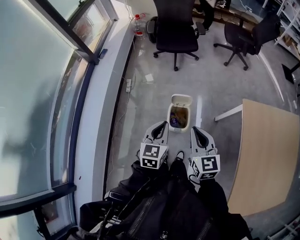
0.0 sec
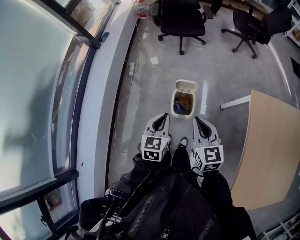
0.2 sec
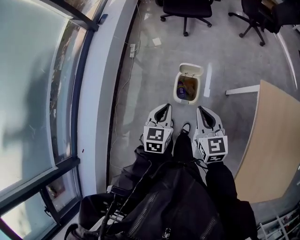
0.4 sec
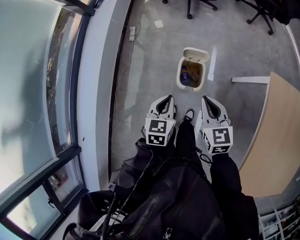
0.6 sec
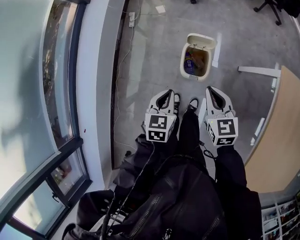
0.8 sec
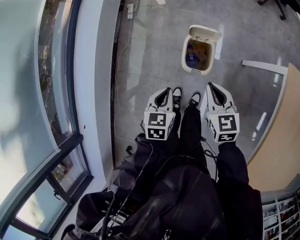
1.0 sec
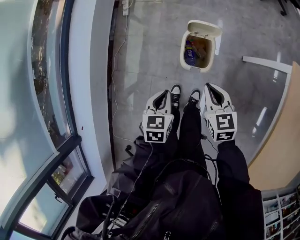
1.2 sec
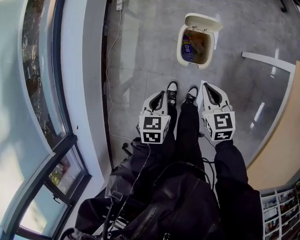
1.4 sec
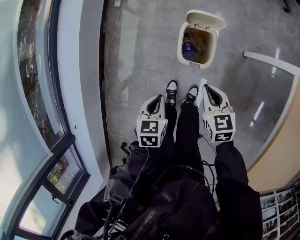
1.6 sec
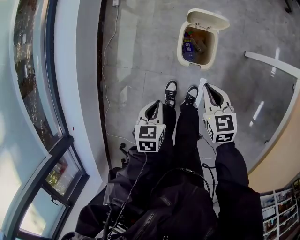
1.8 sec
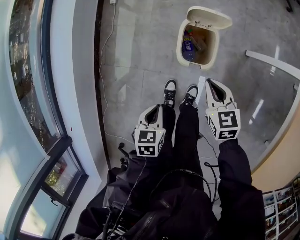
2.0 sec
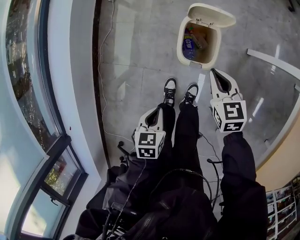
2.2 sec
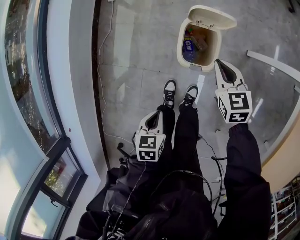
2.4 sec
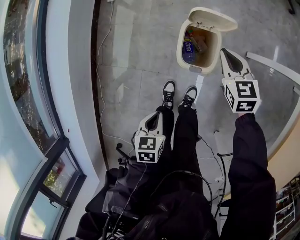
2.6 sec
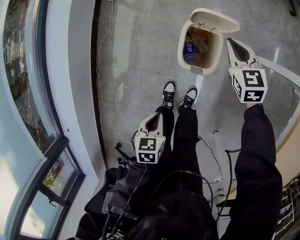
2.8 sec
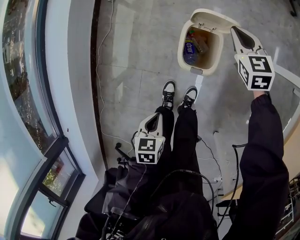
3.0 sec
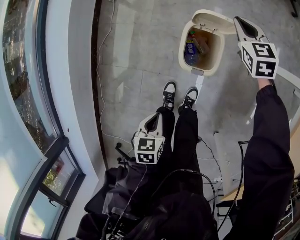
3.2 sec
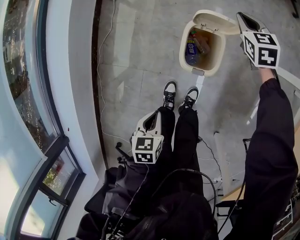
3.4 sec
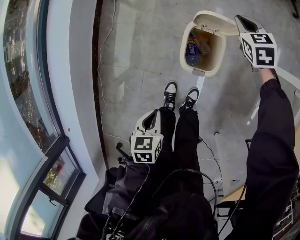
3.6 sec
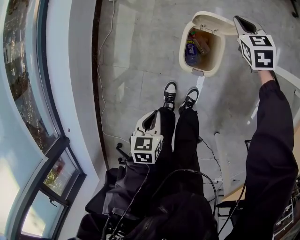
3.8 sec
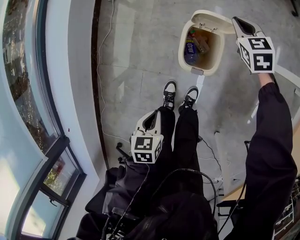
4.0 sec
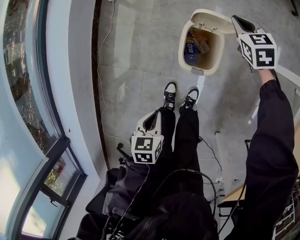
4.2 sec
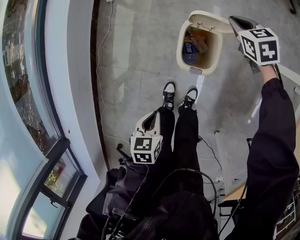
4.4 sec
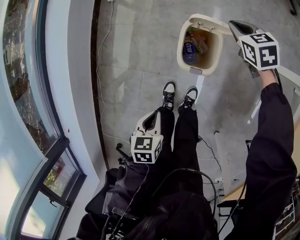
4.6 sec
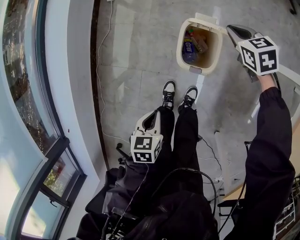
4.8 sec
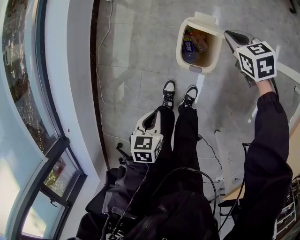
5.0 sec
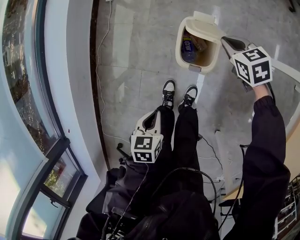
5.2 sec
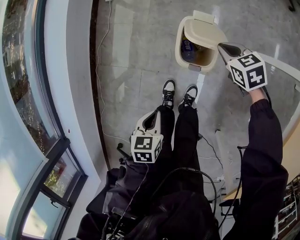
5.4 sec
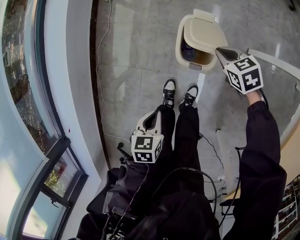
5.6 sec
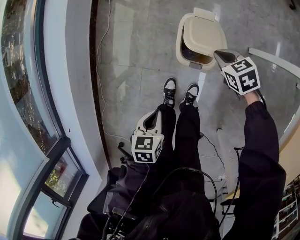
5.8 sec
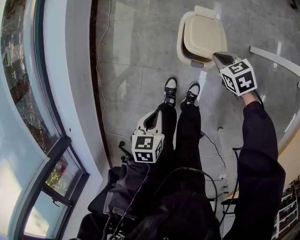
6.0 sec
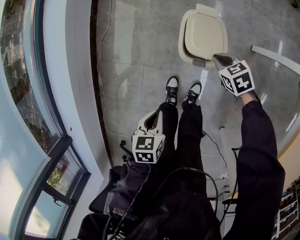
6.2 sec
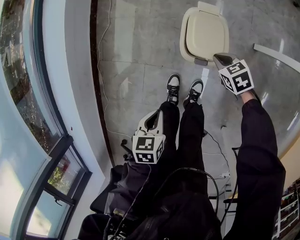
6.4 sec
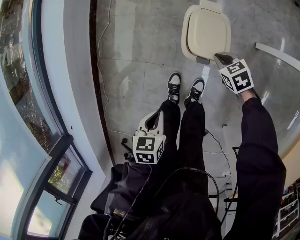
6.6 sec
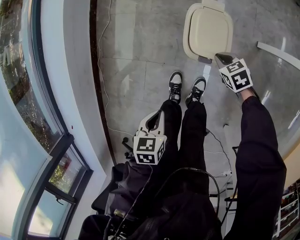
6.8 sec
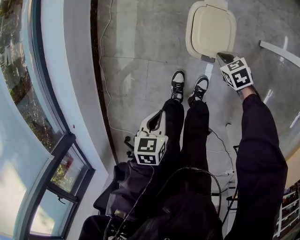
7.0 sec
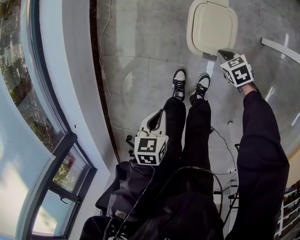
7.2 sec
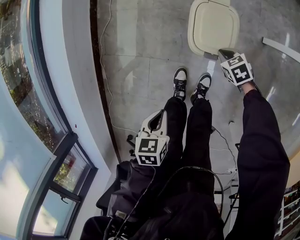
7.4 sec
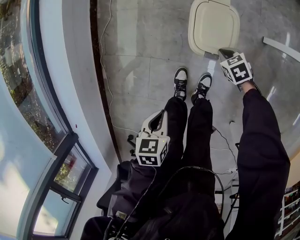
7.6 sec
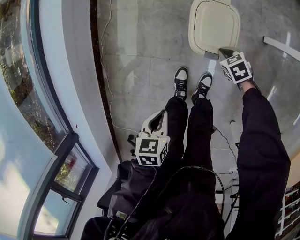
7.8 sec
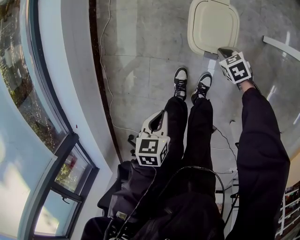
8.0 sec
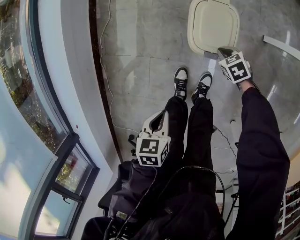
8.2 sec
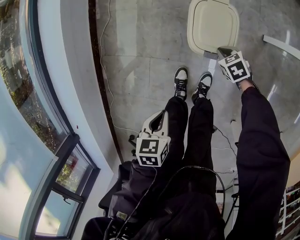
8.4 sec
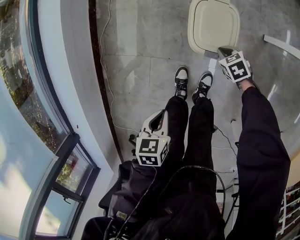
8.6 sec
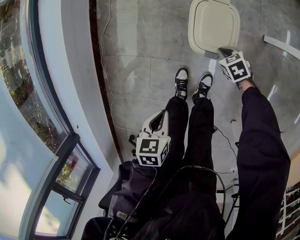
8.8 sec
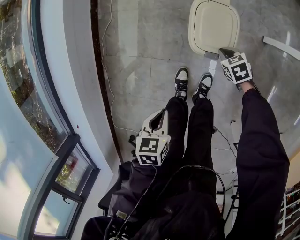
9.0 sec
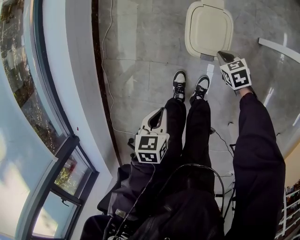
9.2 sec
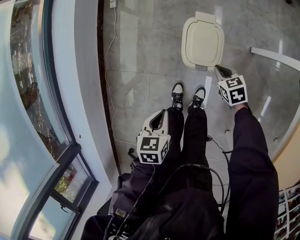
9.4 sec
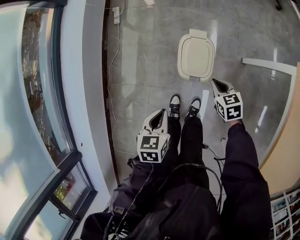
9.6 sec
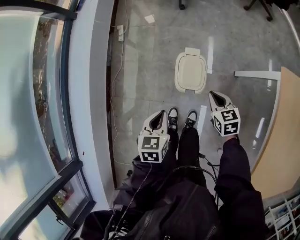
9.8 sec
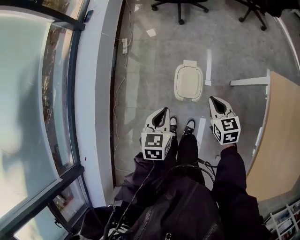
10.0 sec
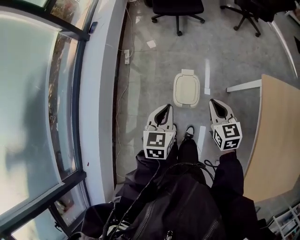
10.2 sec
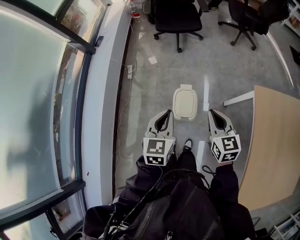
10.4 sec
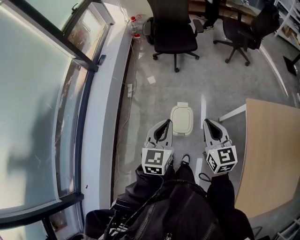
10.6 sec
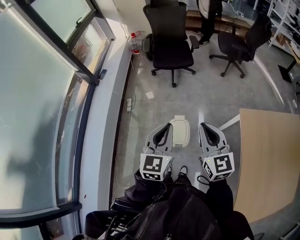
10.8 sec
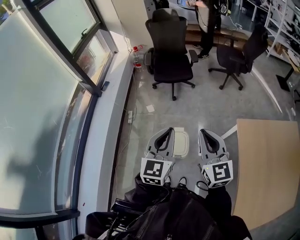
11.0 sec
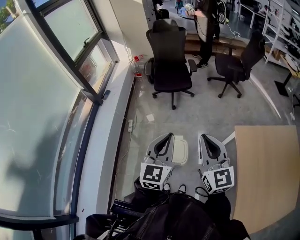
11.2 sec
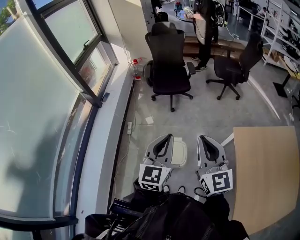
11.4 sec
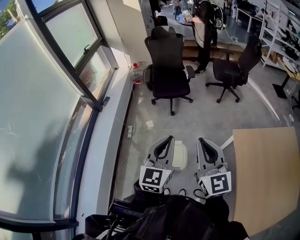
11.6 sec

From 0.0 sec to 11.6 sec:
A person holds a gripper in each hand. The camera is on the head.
From 0.0 sec to 1.4 sec: Both grippers move downward, some 35 cm. The left gripper tips its fingers downward by some 30 degrees, while the right gripper turns by approximately 30 degrees.
From 1.4 sec to 2.8 sec: The right gripper travels forward and downward by roughly 20 cm. Meanwhile the left gripper moves downward and backward, roughly 10 cm.
From 2.8 sec to 4.4 sec: The right gripper moves forward, roughly 10 cm.
From 4.4 sec to 5.8 sec: The right gripper travels backward by some 15 cm.
From 5.8 sec to 7.2 sec: The left gripper changes place by approximately 5 cm; the right gripper shifts approximately 15 cm downward.
From 7.2 sec to 8.8 sec: The grippers make only small movements.
From 8.8 sec to 10.2 sec: The right gripper heads upward, covering about 50 cm, and points its fingers about 40 degrees further upward. Meanwhile the left gripper moves upward and forward, some 40 cm, and points its fingers some 30 degrees further upward.
From 10.2 sec to 11.6 sec: The grippers both shift upward by roughly 35 cm. The left gripper tilts its fingers roughly 30 degrees upward. The right gripper angles its fingers upward, by approximately 40 degrees.

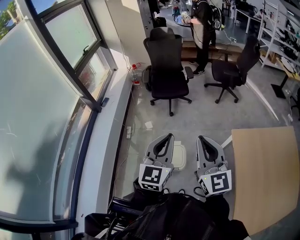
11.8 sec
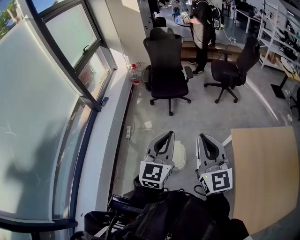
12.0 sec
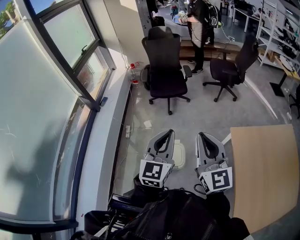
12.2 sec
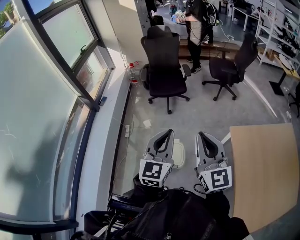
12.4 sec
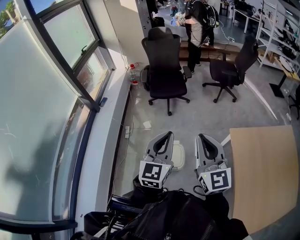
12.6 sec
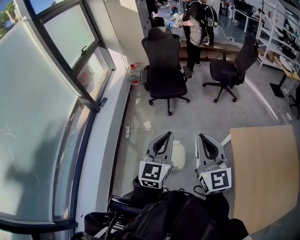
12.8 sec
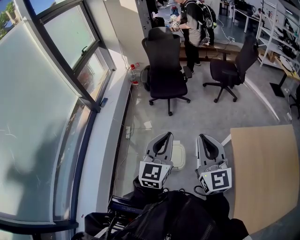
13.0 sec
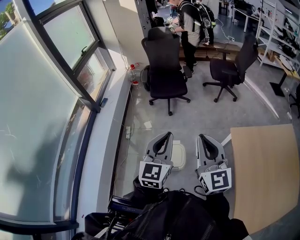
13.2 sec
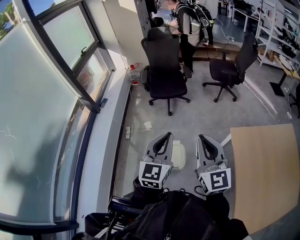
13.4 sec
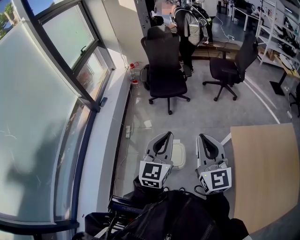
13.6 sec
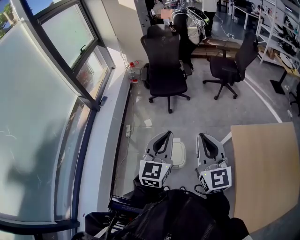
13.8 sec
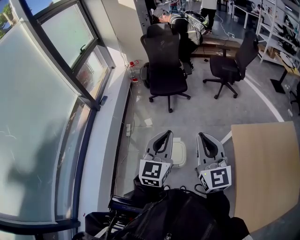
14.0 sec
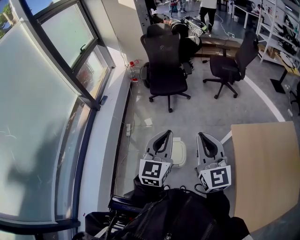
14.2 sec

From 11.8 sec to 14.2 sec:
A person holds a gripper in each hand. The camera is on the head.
From 11.8 sec to 13.0 sec: Both grippers stay put.
From 13.0 sec to 14.2 sec: The grippers stay close to where they were, moving slightly.

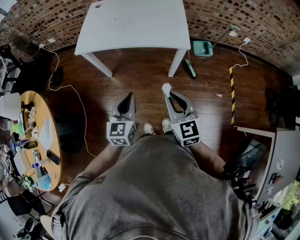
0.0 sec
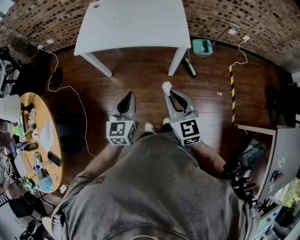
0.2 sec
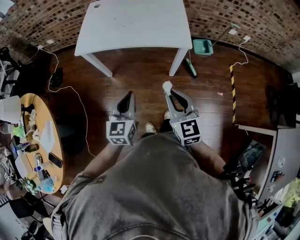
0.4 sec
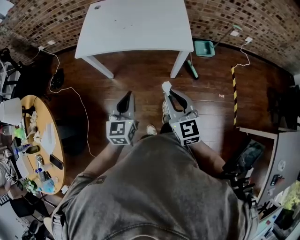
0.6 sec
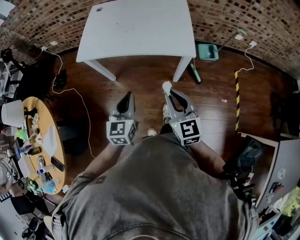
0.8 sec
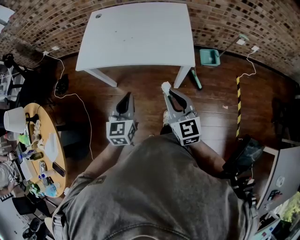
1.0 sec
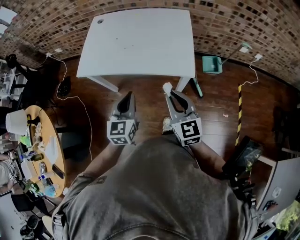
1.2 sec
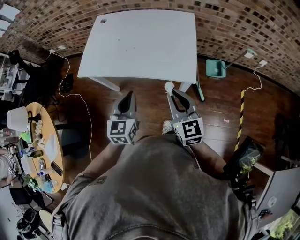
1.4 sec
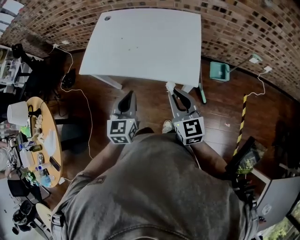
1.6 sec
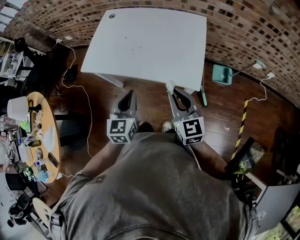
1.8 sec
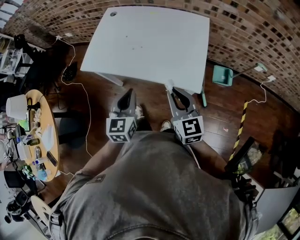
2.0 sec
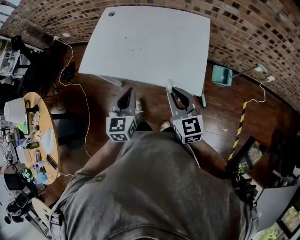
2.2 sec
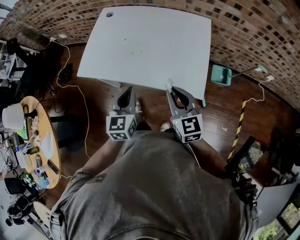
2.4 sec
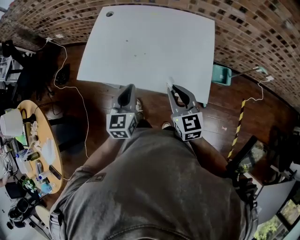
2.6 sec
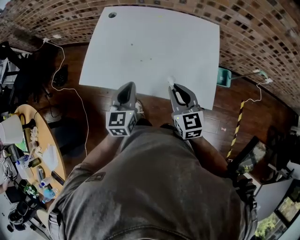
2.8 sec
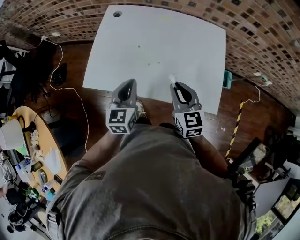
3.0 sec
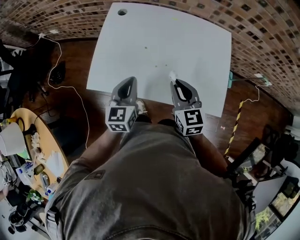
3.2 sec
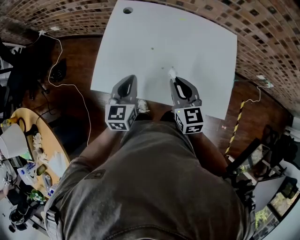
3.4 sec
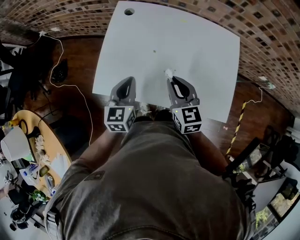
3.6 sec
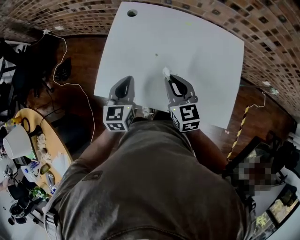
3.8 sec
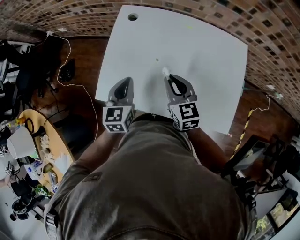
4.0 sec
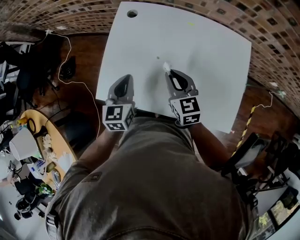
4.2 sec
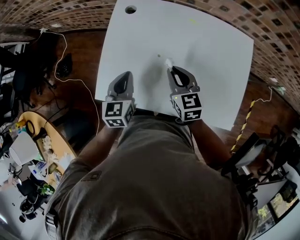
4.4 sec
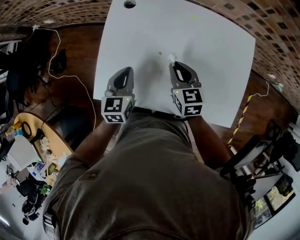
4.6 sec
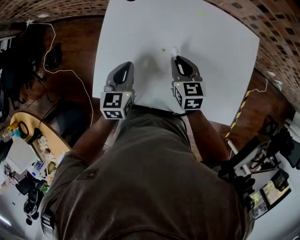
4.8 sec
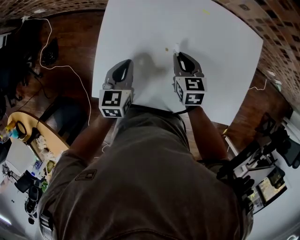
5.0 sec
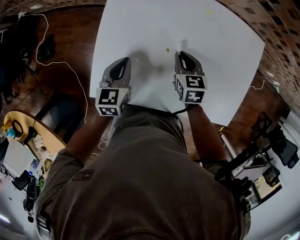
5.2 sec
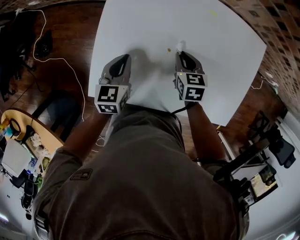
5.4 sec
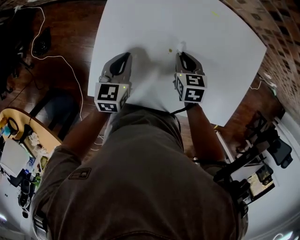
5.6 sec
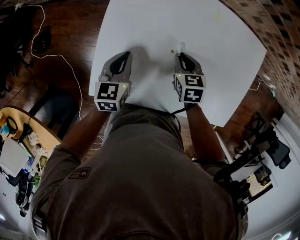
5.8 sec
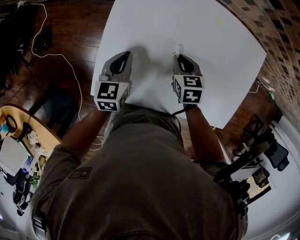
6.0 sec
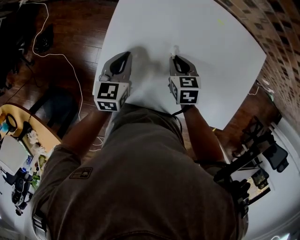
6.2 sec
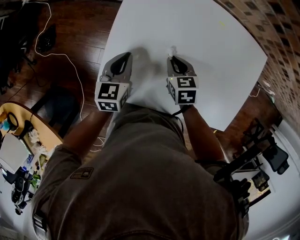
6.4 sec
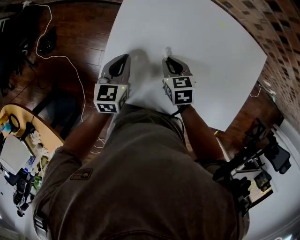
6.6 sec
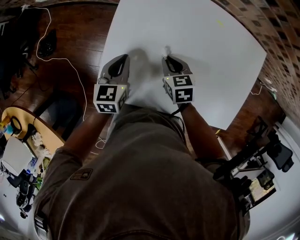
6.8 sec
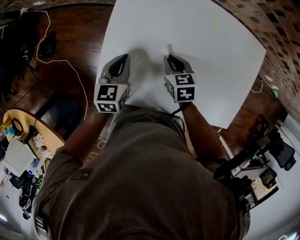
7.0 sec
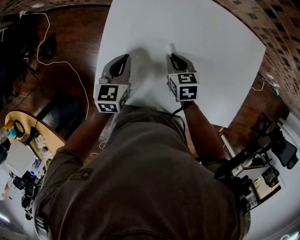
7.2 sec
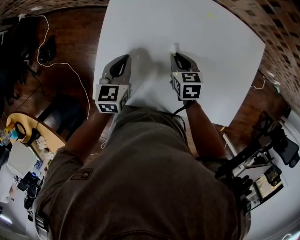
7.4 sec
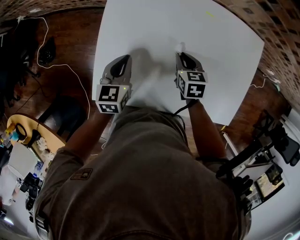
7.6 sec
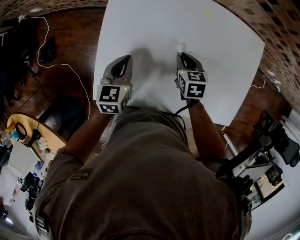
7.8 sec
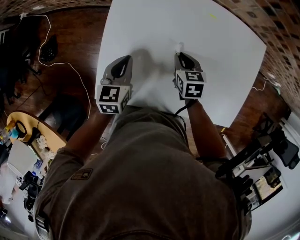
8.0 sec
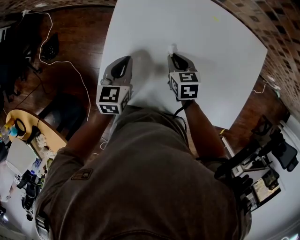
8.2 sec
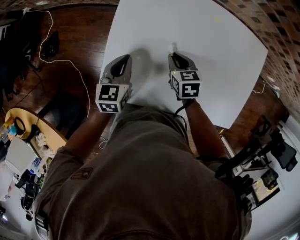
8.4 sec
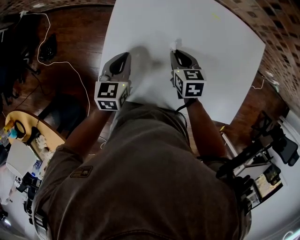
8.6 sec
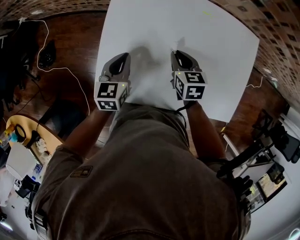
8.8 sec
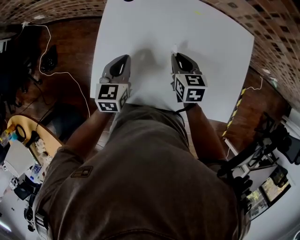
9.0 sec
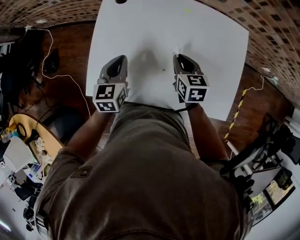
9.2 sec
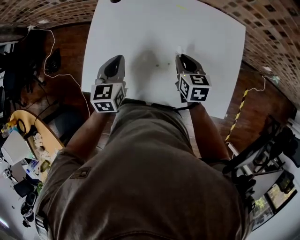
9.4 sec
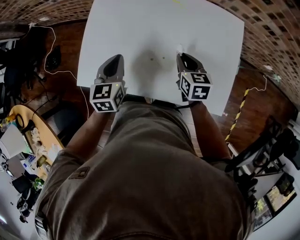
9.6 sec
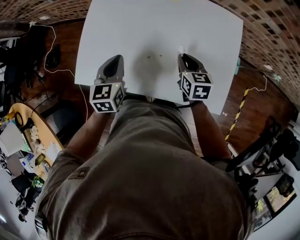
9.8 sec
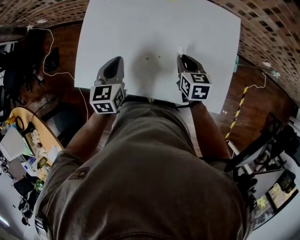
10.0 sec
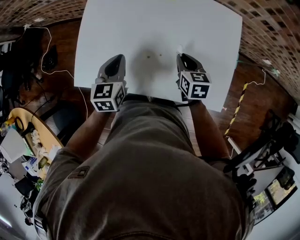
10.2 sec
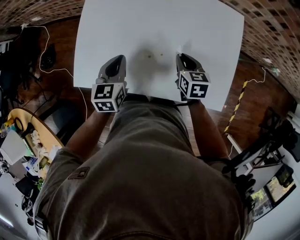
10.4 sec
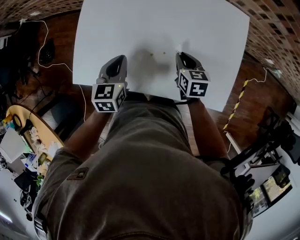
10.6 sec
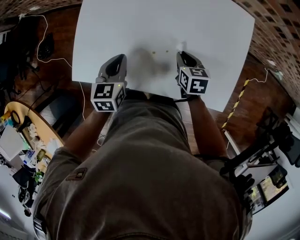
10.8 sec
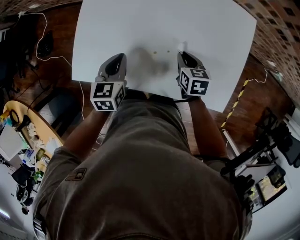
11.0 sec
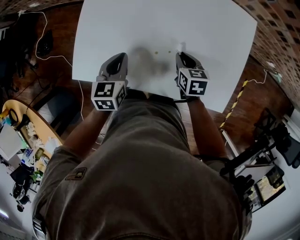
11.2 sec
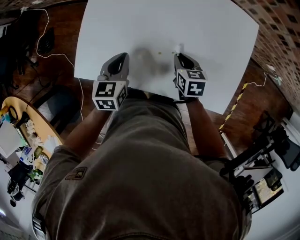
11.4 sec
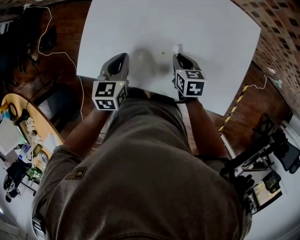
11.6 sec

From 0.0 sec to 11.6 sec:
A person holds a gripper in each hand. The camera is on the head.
From 0.0 sec to 1.4 sec: Both grippers travel together forward, about 20 cm.
From 1.4 sec to 2.8 sec: Both grippers travel together forward, about 20 cm.
From 2.8 sec to 4.4 sec: Both grippers move forward and to the left, roughly 25 cm.
From 4.4 sec to 5.8 sec: Both grippers move downward and forward, roughly 10 cm. The right gripper turns by some 30 degrees.
From 7.2 sec to 8.8 sec: The right gripper changes place by approximately 5 cm.
From 8.8 sec to 10.2 sec: The two grippers go about 15 cm to the right and backward.
From 10.2 sec to 11.6 sec: The left gripper moves to the left, some 5 cm; the right gripper shifts about 10 cm to the left and downward.
